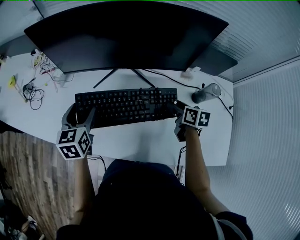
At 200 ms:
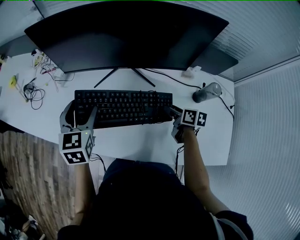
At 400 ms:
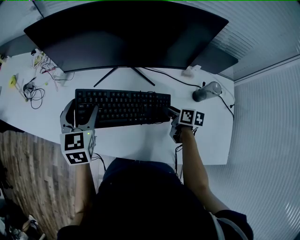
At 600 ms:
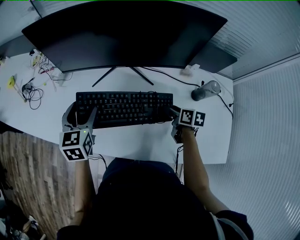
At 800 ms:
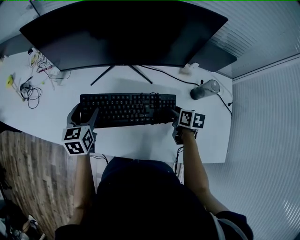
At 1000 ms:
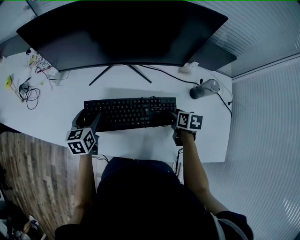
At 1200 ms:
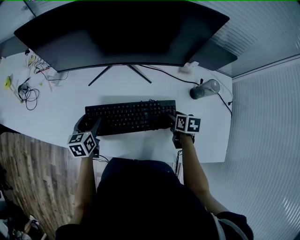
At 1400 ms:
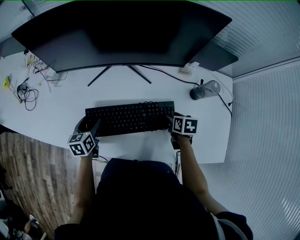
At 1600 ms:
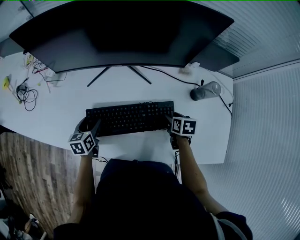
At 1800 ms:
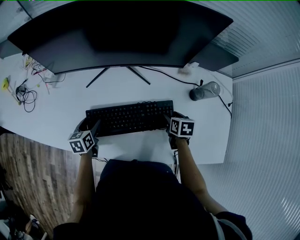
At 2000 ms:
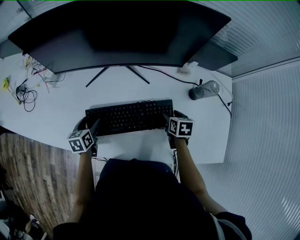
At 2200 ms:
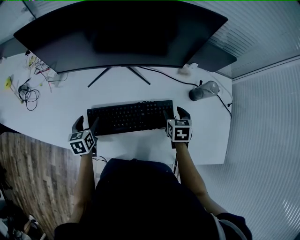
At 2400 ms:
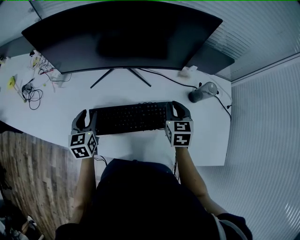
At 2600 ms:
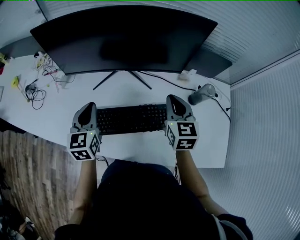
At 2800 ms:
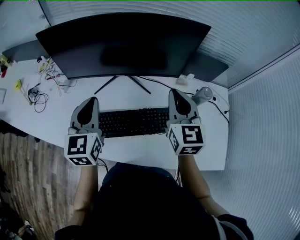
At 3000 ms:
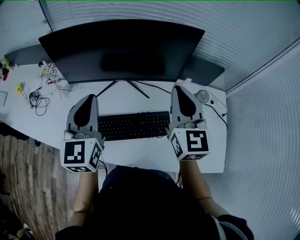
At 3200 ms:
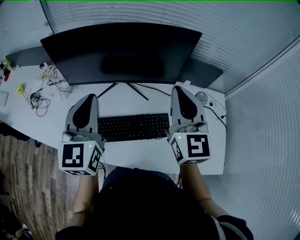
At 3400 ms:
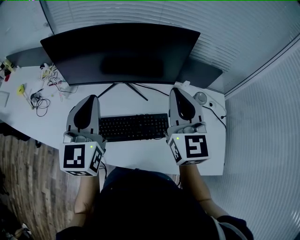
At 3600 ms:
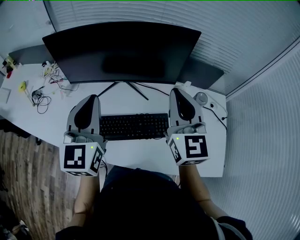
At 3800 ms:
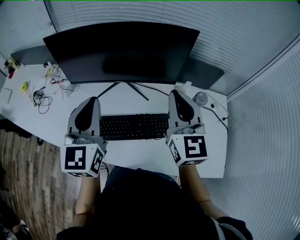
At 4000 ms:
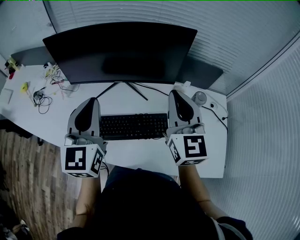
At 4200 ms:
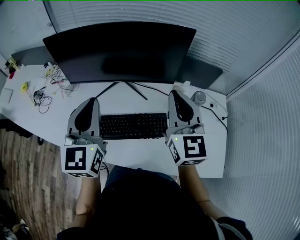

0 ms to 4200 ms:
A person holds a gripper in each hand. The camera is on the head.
0 ms to 1400 ms: The left gripper moves downward, roughly 15 cm. Meanwhile the right gripper goes some 10 cm downward and backward.
1400 ms to 2800 ms: The two grippers go about 30 cm upward. The right gripper points its fingers roughly 50 degrees further upward, and closes its fingers, while the left gripper swivels about 40 degrees, and closes.
2800 ms to 4200 ms: The right gripper heads upward, covering some 5 cm. Meanwhile the left gripper goes about 10 cm upward and to the right.

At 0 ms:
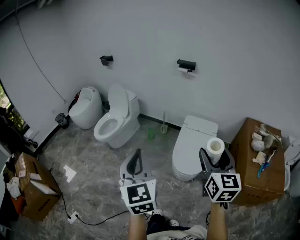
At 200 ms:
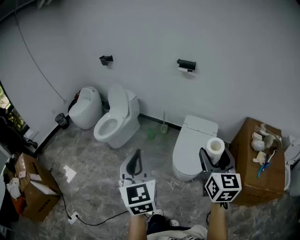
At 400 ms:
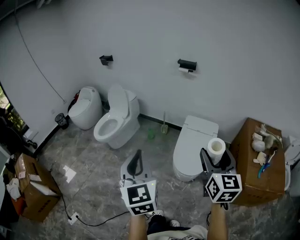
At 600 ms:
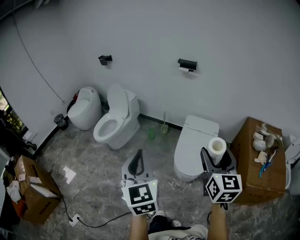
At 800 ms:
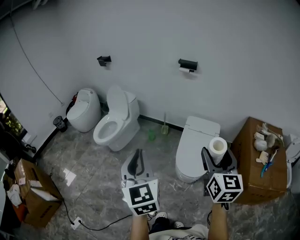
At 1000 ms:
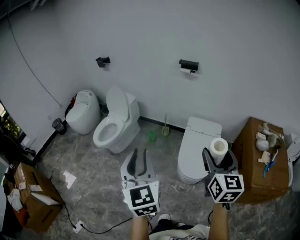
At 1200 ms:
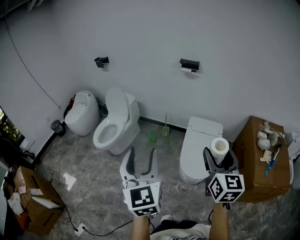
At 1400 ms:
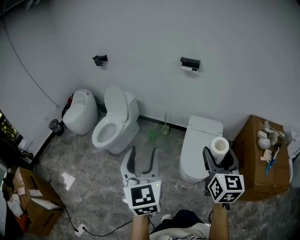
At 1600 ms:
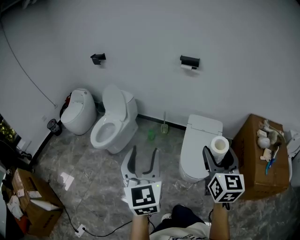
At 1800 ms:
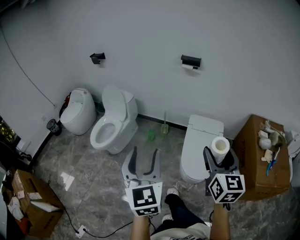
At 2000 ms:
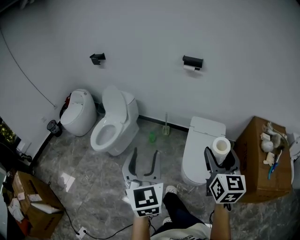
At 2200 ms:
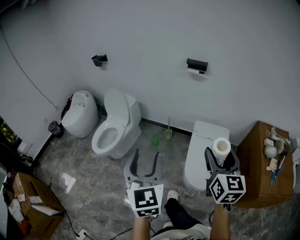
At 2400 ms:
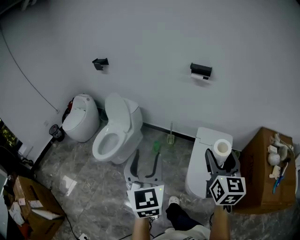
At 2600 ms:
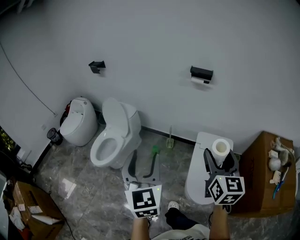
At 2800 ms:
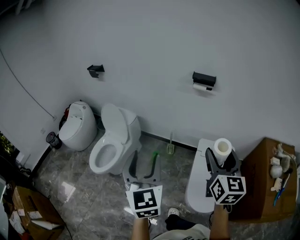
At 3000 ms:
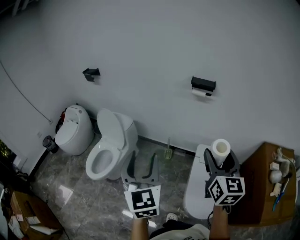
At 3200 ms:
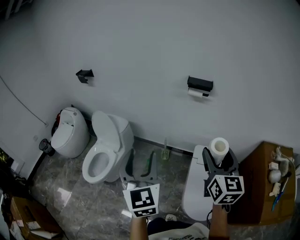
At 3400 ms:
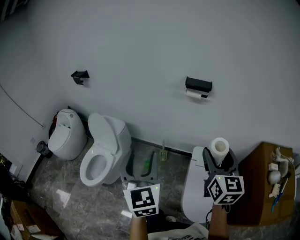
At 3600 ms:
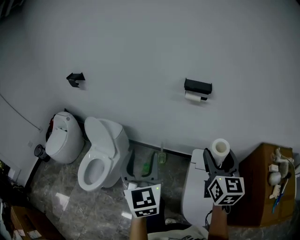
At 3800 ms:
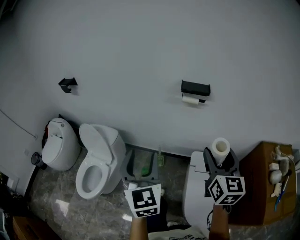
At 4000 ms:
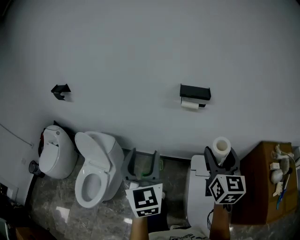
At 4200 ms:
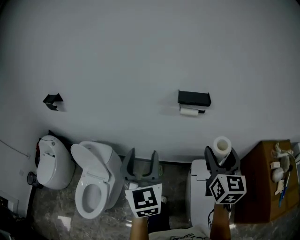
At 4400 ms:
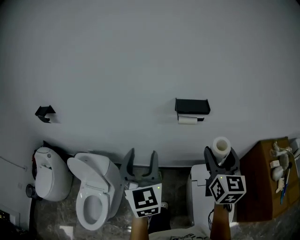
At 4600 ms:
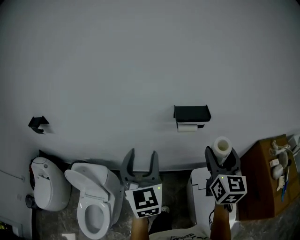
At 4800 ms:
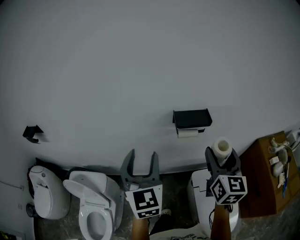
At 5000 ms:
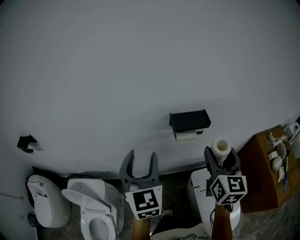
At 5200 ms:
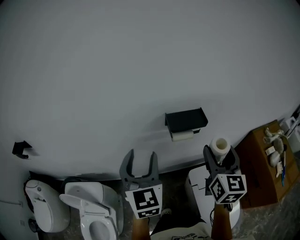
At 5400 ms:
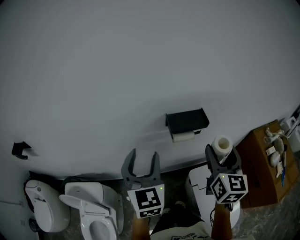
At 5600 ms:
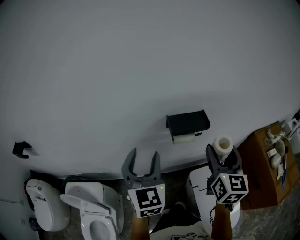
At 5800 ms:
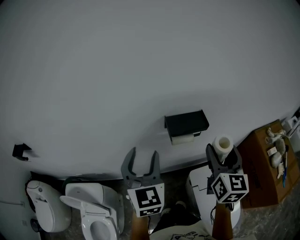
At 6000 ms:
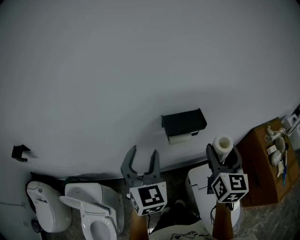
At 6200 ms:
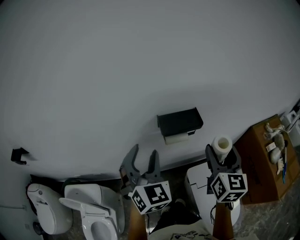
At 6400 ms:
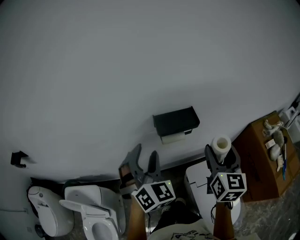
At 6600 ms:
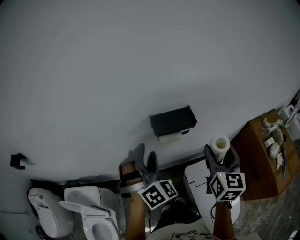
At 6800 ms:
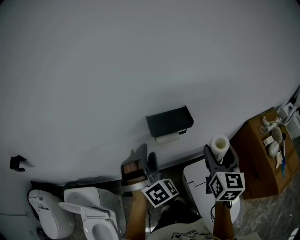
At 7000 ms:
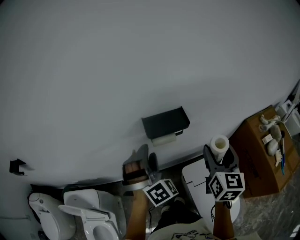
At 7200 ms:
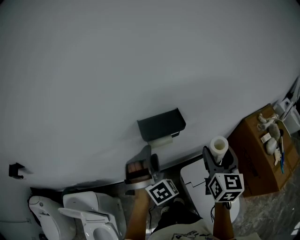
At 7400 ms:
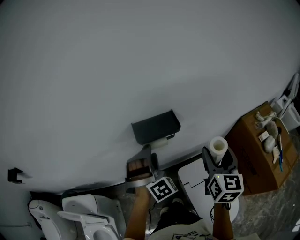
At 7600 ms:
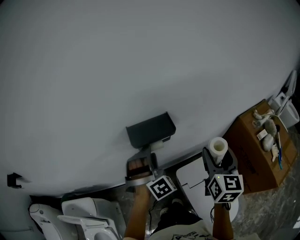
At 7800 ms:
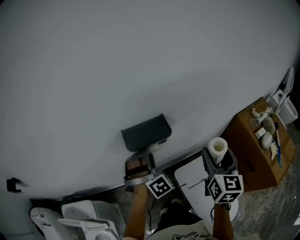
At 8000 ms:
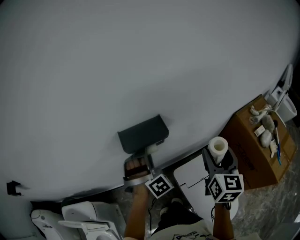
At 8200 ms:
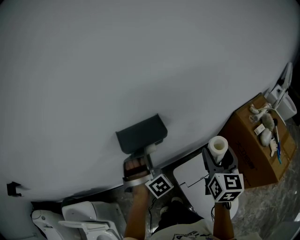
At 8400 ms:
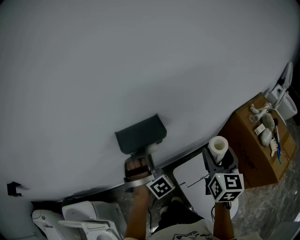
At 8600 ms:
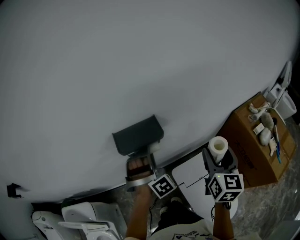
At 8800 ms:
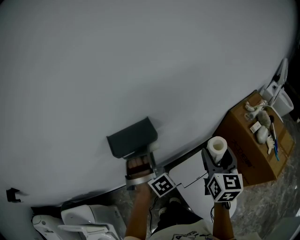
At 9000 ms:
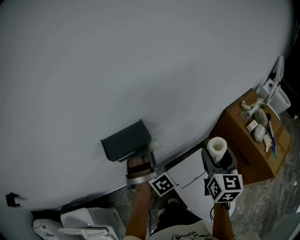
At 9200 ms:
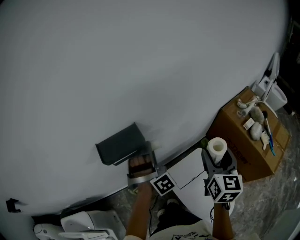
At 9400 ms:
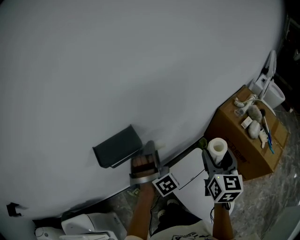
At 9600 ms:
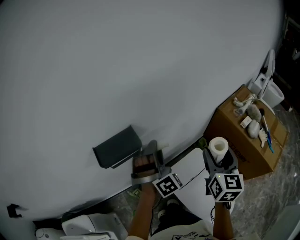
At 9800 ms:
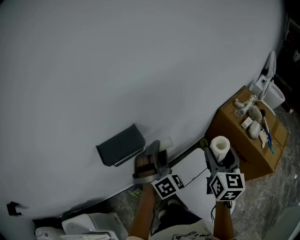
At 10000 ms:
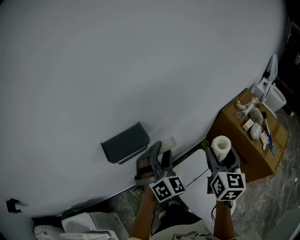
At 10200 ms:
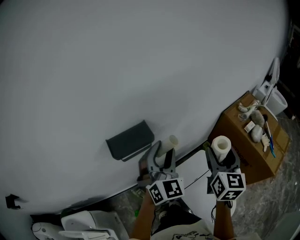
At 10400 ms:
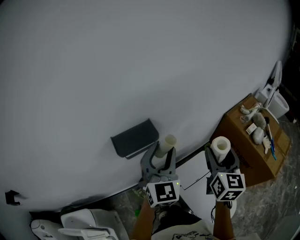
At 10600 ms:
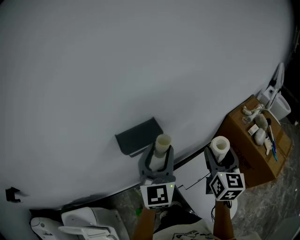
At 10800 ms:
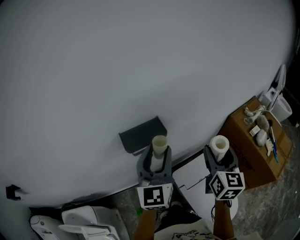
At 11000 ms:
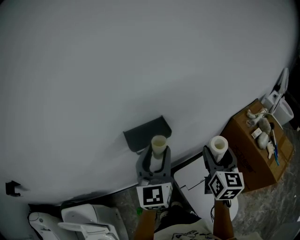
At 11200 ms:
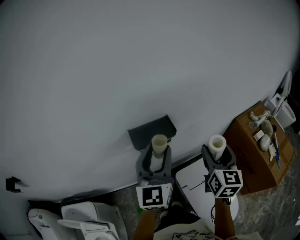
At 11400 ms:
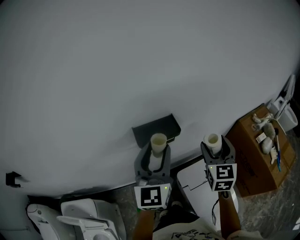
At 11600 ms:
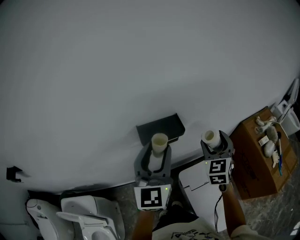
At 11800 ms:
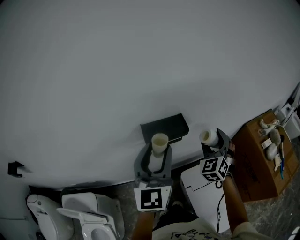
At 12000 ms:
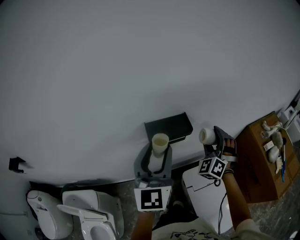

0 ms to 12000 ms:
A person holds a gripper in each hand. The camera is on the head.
0 ms to 1600 ms: The two grippers go some 10 cm forward and to the left. The left gripper opens its fingers.
1600 ms to 3000 ms: Both grippers move forward, some 30 cm.
3000 ms to 4400 ms: The two grippers go approximately 30 cm forward.
4400 ms to 6000 ms: The right gripper heads forward, covering some 10 cm. Meanwhile the left gripper shifts approximately 20 cm forward.
6000 ms to 7600 ms: The right gripper moves to the right, roughly 10 cm. Meanwhile the left gripper travels to the right, downward and forward by approximately 20 cm, and rolls clockwise, seen from behind, by some 60 degrees.
7600 ms to 9000 ms: Both grippers move to the right, some 10 cm.
9000 ms to 10400 ms: The left gripper is displaced upward and backward by roughly 10 cm, and twists roughly 60 degrees counterclockwise, seen from behind.
10400 ms to 12000 ms: The left gripper heads to the left, covering about 10 cm, and rotates some 20 degrees. The right gripper is displaced to the left, forward and downward by some 20 cm, and twists some 70 degrees counterclockwise, seen from behind.

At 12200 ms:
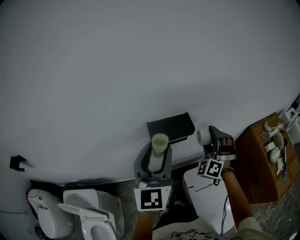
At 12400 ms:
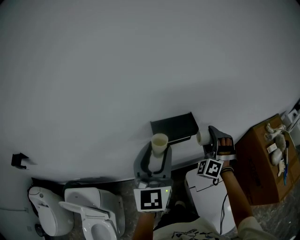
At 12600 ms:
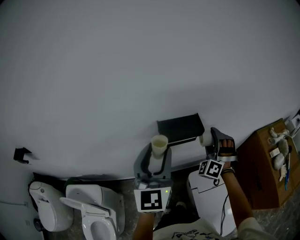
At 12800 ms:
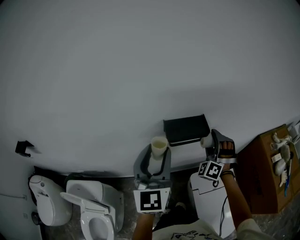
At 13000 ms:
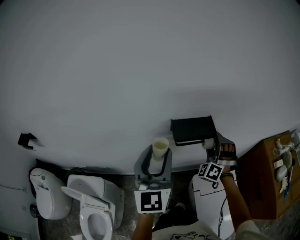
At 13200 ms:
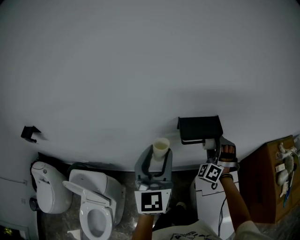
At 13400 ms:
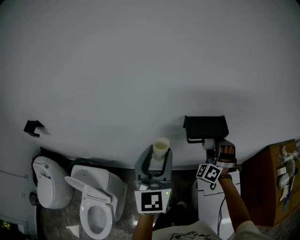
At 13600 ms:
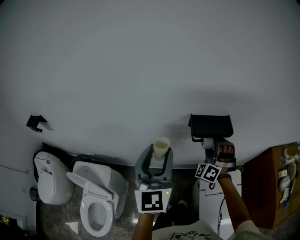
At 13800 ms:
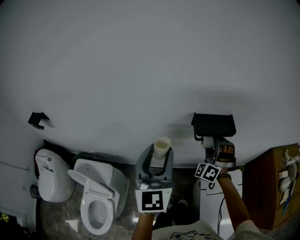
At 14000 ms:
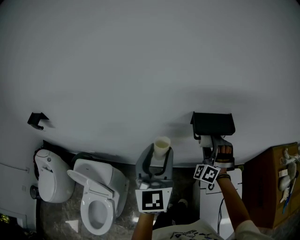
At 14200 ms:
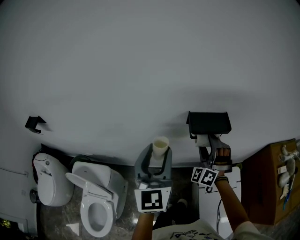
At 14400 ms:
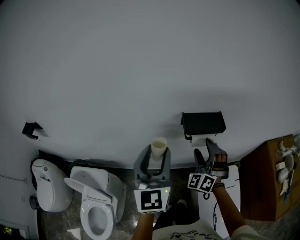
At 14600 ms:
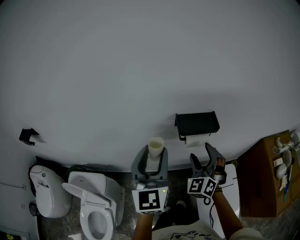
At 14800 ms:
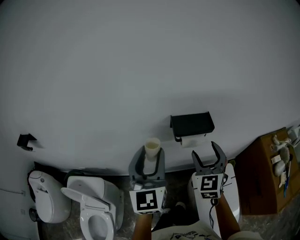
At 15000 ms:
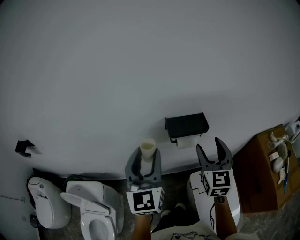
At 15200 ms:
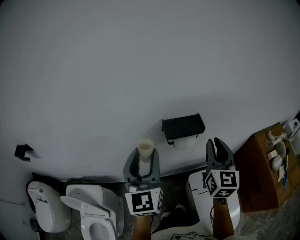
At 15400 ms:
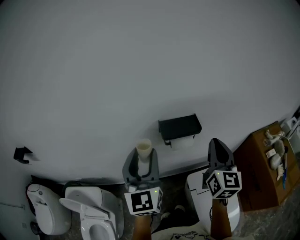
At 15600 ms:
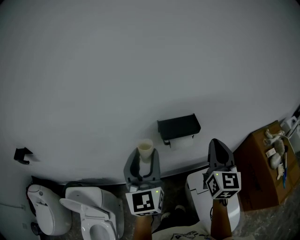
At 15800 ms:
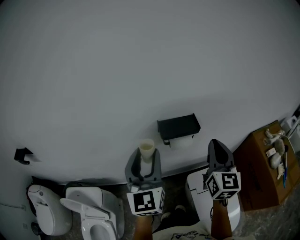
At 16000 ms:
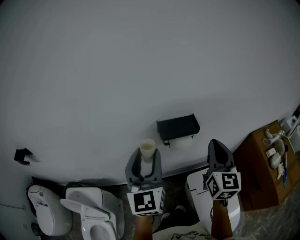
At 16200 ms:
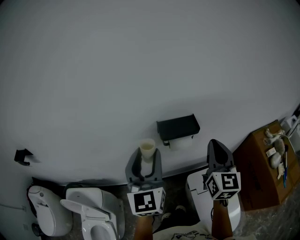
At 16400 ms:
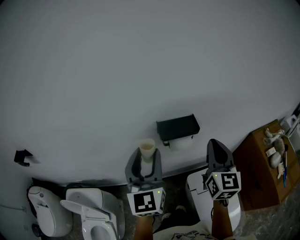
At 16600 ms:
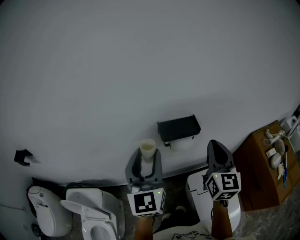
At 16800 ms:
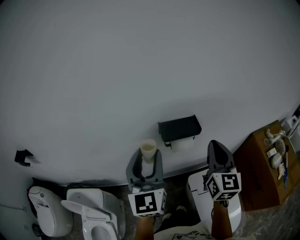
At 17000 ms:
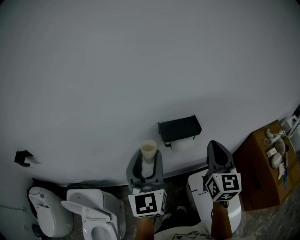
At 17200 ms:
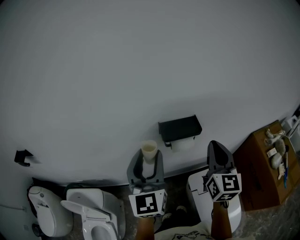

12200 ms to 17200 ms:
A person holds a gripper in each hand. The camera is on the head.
12200 ms to 13800 ms: The left gripper moves to the left and backward, some 15 cm; the right gripper moves to the left, approximately 15 cm.
13800 ms to 15600 ms: The right gripper heads upward, to the right and backward, covering some 20 cm, twists about 80 degrees clockwise, seen from behind, and closes up. The left gripper shifts by about 5 cm.
15600 ms to 17200 ms: The two grippers keep their place.

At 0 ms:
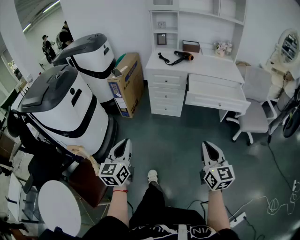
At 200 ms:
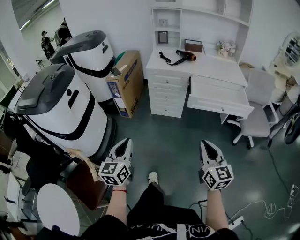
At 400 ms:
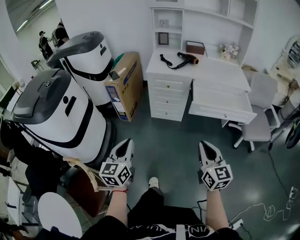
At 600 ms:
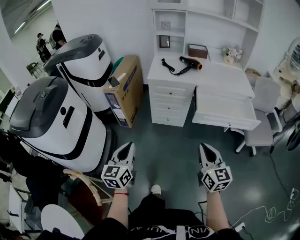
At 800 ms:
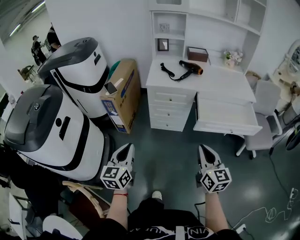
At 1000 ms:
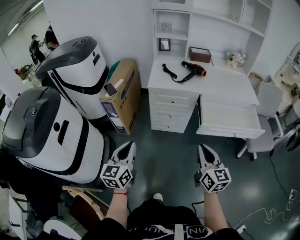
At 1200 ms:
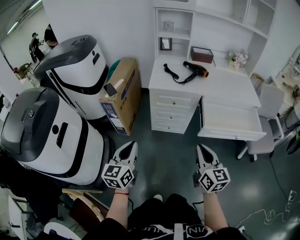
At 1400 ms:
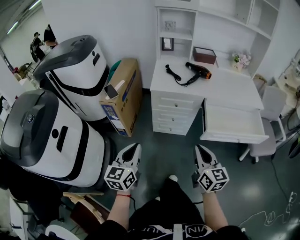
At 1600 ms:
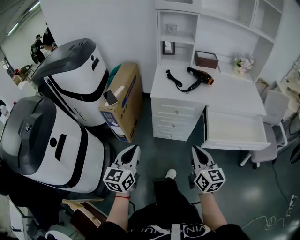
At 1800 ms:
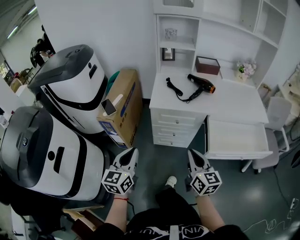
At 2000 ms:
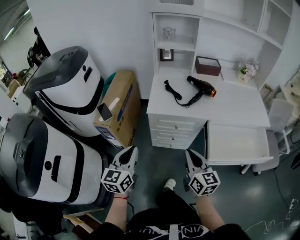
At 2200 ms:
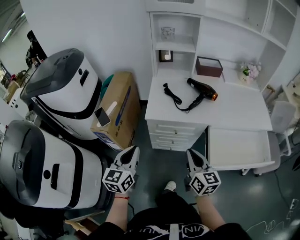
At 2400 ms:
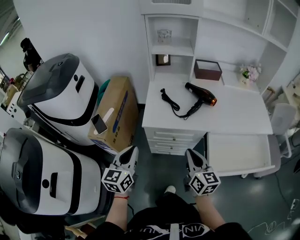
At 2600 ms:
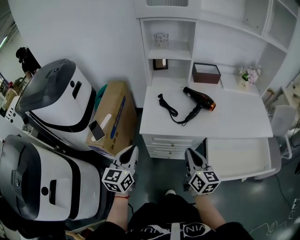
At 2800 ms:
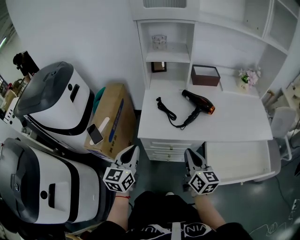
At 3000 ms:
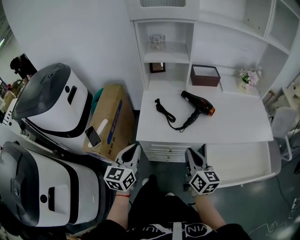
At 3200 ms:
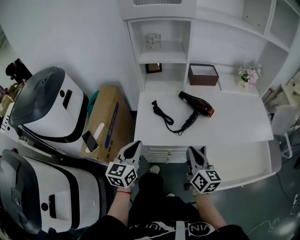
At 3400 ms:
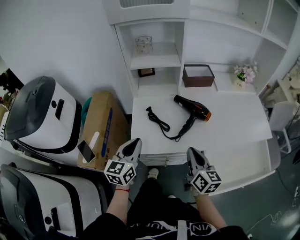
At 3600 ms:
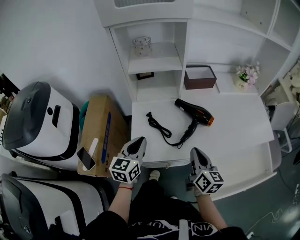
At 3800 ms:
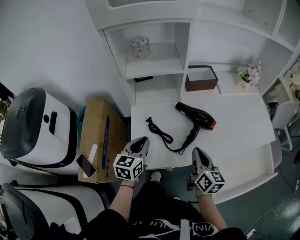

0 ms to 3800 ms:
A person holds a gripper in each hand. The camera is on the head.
0 ms to 1200 ms: Both grippers travel together forward, some 35 cm.
1200 ms to 2600 ms: Both grippers move forward, about 35 cm.
2600 ms to 3800 ms: The grippers both shift forward by roughly 25 cm. The left gripper rotates roughly 20 degrees.
